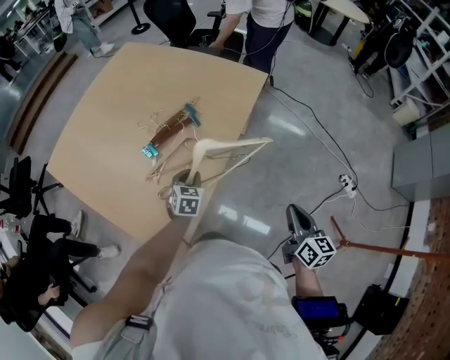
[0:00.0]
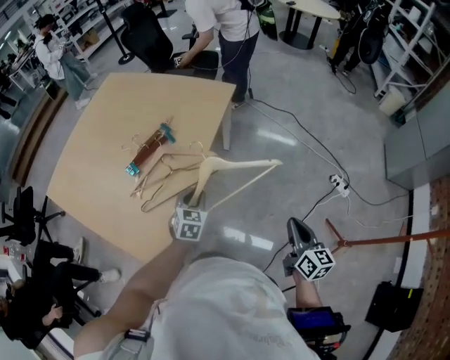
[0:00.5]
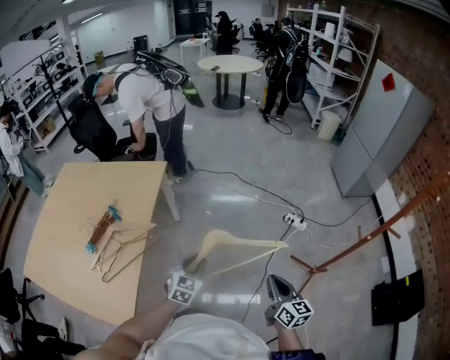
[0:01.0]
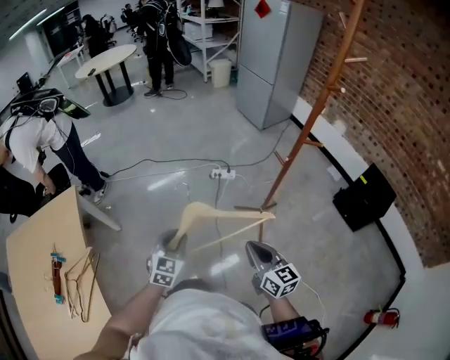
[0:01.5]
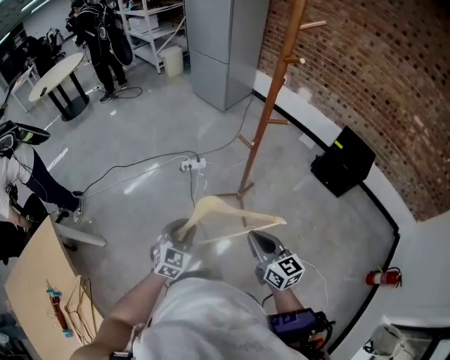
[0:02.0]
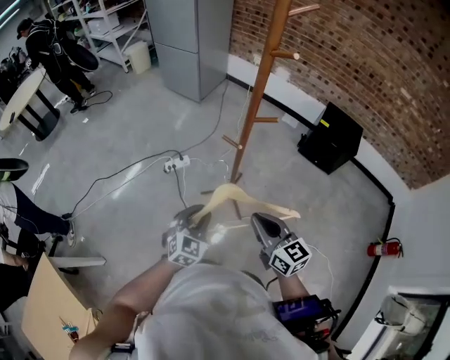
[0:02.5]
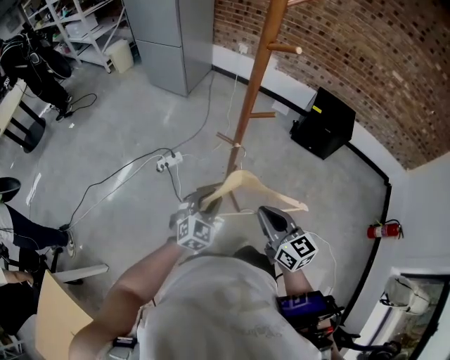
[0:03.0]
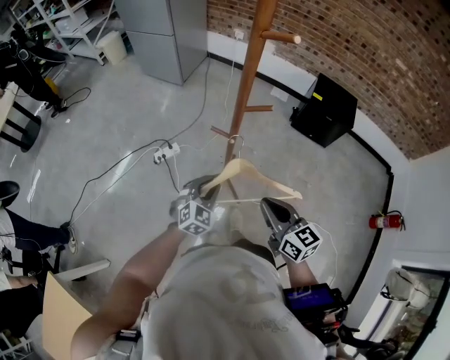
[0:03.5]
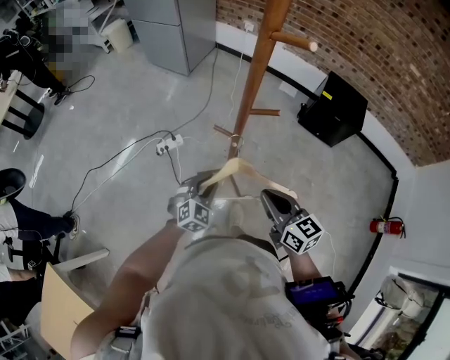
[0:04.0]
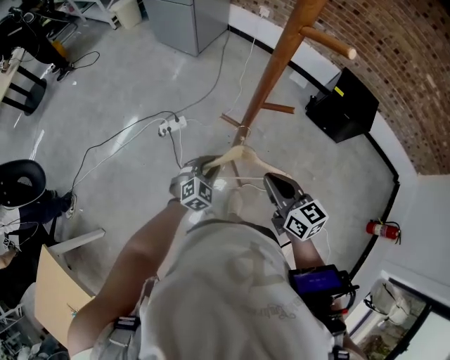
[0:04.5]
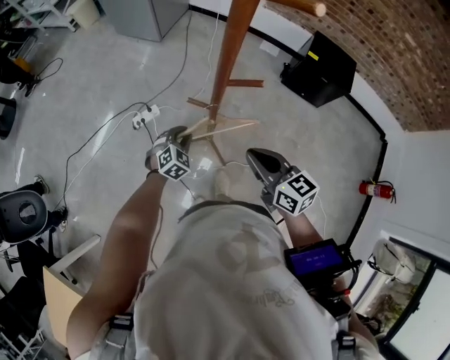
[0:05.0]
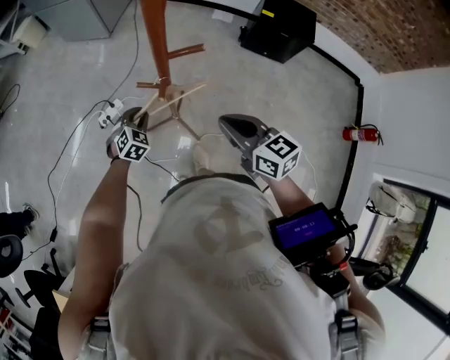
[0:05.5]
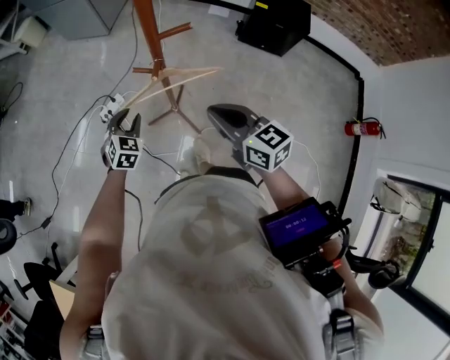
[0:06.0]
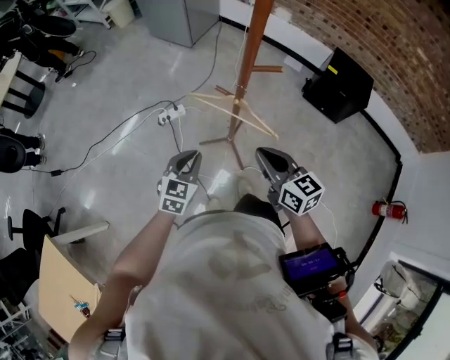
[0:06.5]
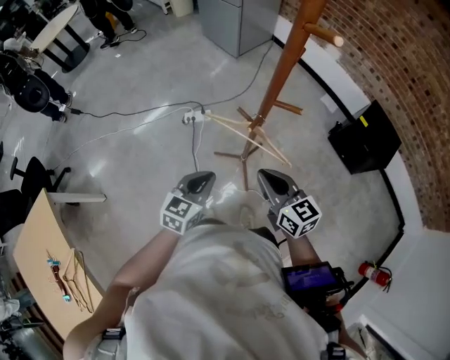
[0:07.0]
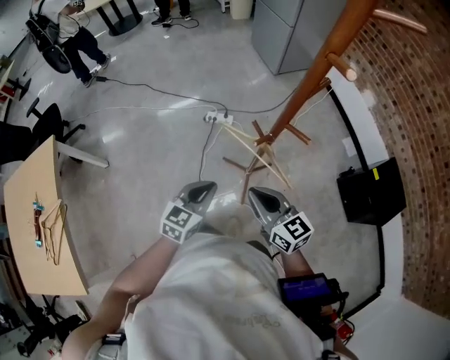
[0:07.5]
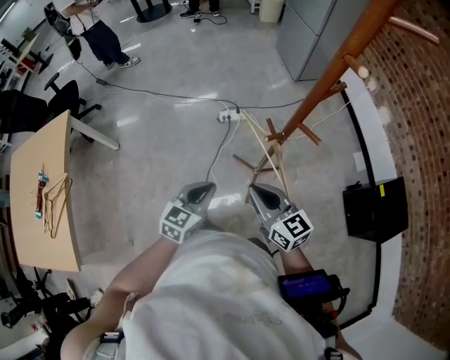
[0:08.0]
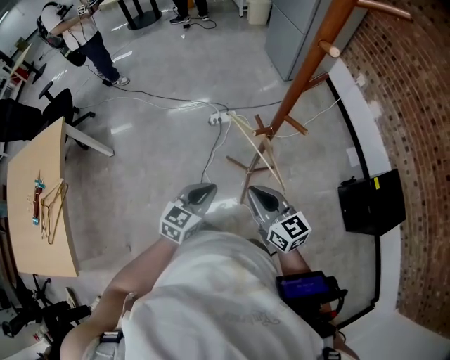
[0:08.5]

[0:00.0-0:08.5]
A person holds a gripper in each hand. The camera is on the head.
0:00.0 to 0:02.0: Both grippers are carried approximately 60 cm. The left gripper rotates about 90 degrees, while the right gripper rotates some 50 degrees.
0:02.0 to 0:04.0: The right gripper is displaced forward by approximately 20 cm, while the left gripper is displaced forward and to the right by approximately 30 cm, and changes its angle by roughly 30 degrees.
0:04.0 to 0:06.5: The left gripper travels to the left by some 5 cm, reaches some 15 cm forward, then returns, and changes its angle by approximately 30 degrees.
0:06.5 to 0:08.5: The left gripper ends up approximately 15 cm from where it was, and swivels about 30 degrees. The right gripper turns by some 40 degrees.

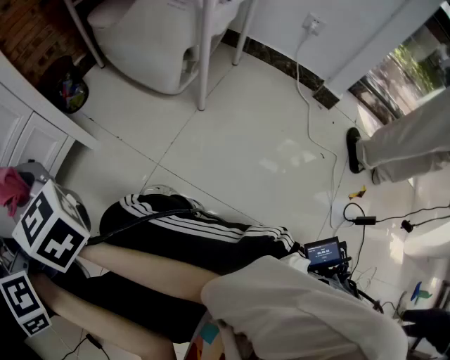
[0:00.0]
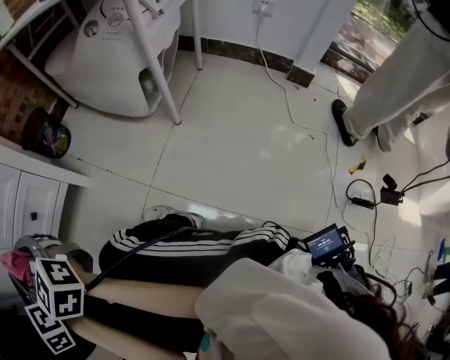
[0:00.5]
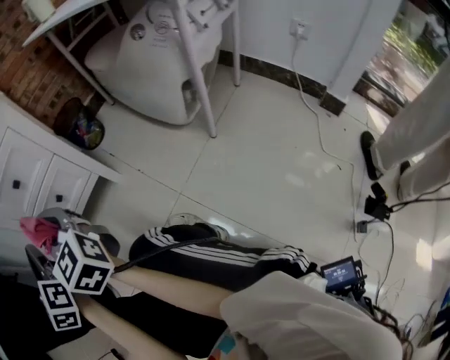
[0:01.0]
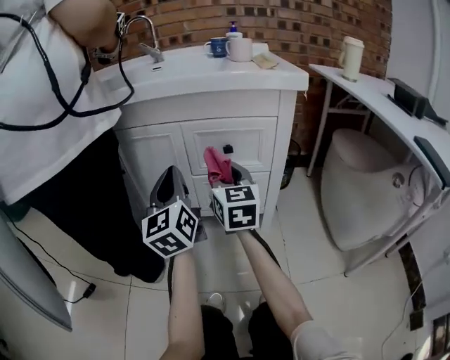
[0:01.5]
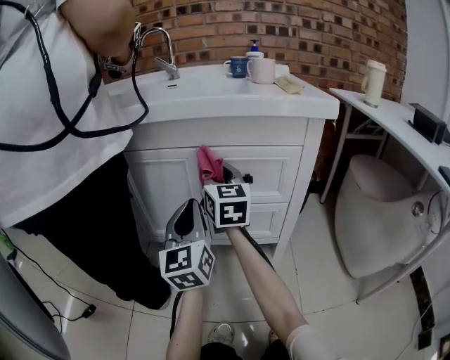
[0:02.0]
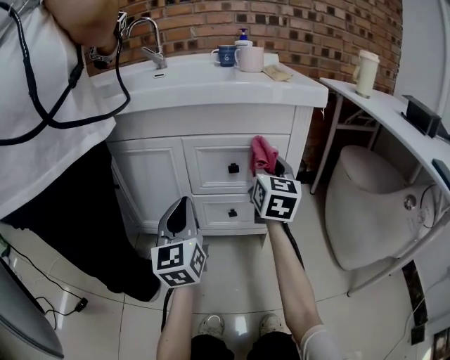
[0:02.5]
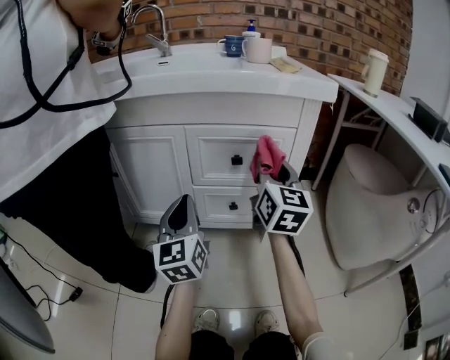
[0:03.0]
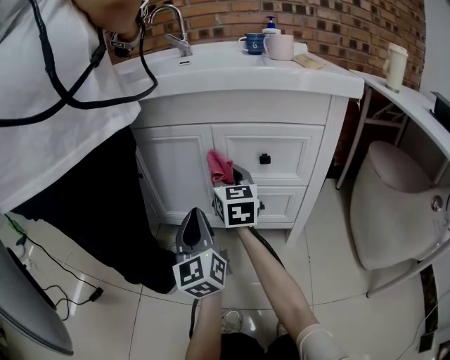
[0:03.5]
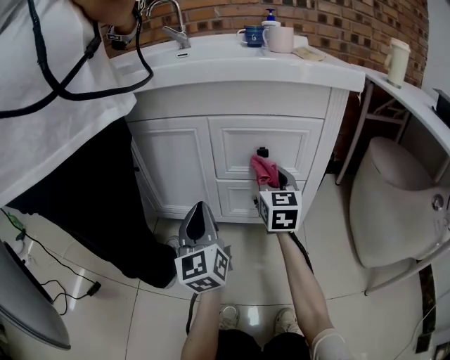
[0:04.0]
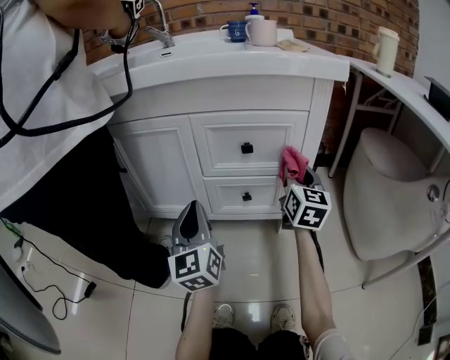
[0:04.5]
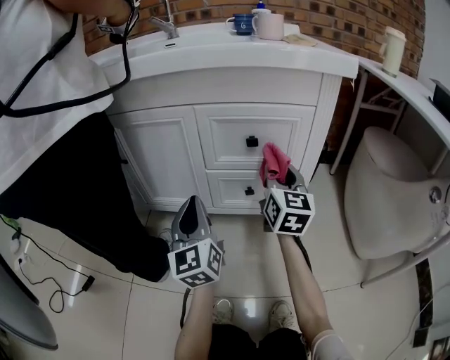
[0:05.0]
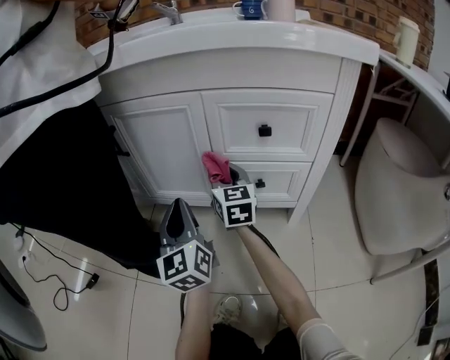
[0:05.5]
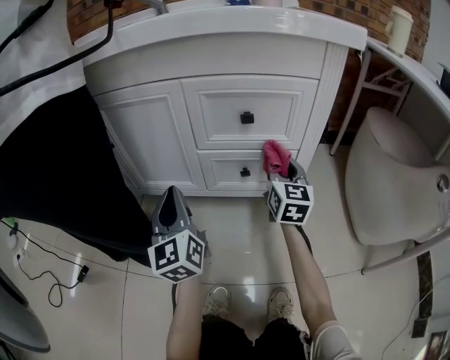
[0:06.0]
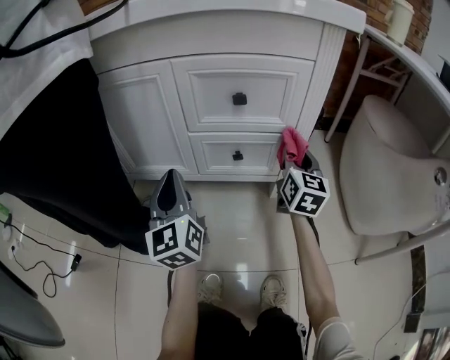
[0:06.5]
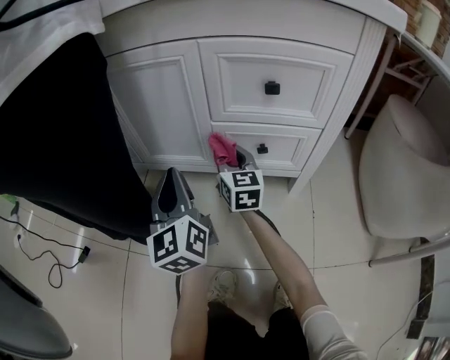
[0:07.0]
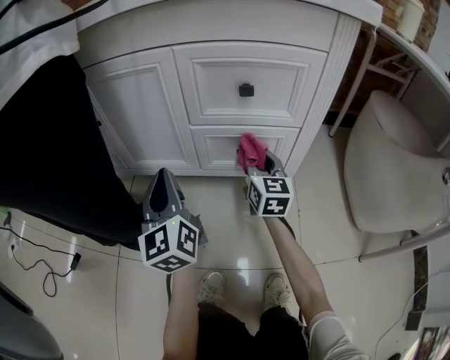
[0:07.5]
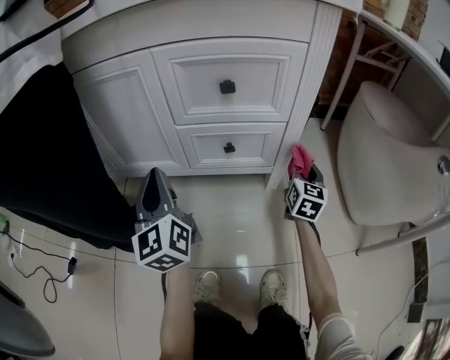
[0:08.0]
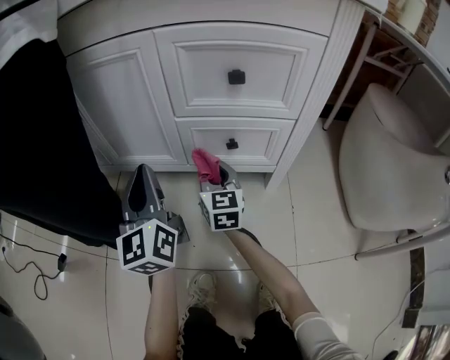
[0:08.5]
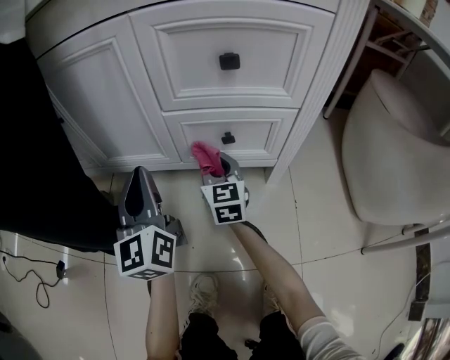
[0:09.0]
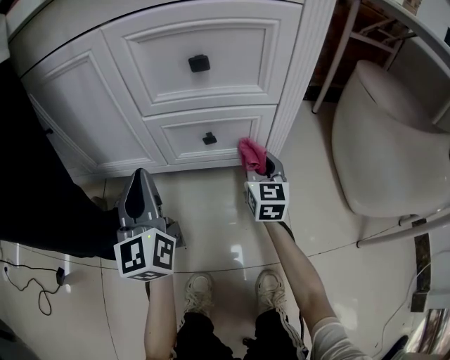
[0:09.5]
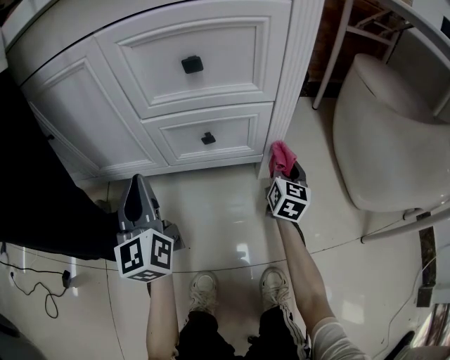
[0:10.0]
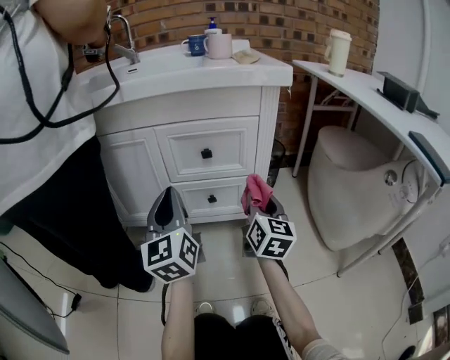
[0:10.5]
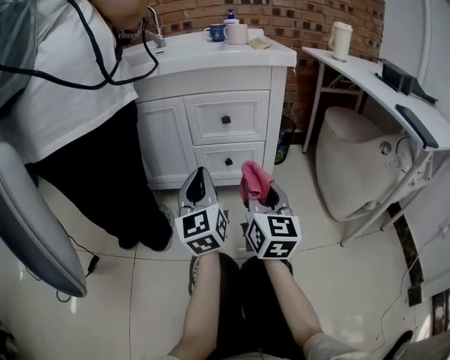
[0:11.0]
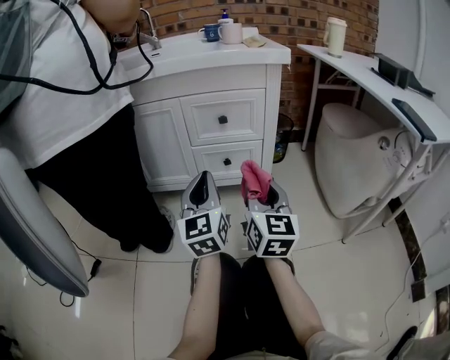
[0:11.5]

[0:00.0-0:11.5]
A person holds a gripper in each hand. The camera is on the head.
0:00.0 to 0:02.0: The left gripper shifts about 15 cm forward and to the left, while the right gripper heads forward and to the left, covering some 30 cm, and turns by roughly 30 degrees.
0:02.0 to 0:04.0: The left gripper moves downward, some 10 cm; the right gripper goes left and right, roughly 20 cm each way, reversing 2 times.
0:04.0 to 0:06.0: The right gripper swings left and right, some 25 cm each way, with 2 reversals.
0:06.0 to 0:07.5: The right gripper goes left and right, approximately 25 cm each way, reversing 2 times.
0:07.5 to 0:09.5: The right gripper goes left and right, some 30 cm each way, reversing 2 times. Meanwhile the left gripper changes place by roughly 5 cm.
0:09.5 to 0:11.5: The right gripper heads upward and backward, covering approximately 40 cm. Meanwhile the left gripper is displaced backward, upward and to the right by approximately 25 cm.

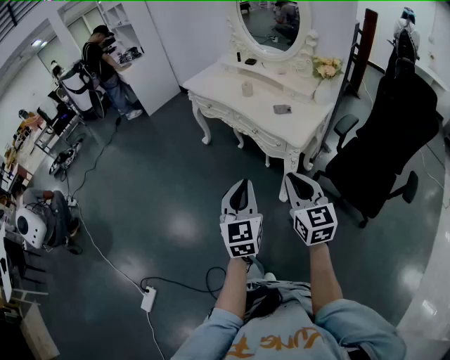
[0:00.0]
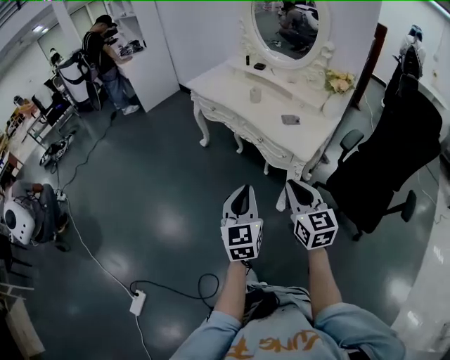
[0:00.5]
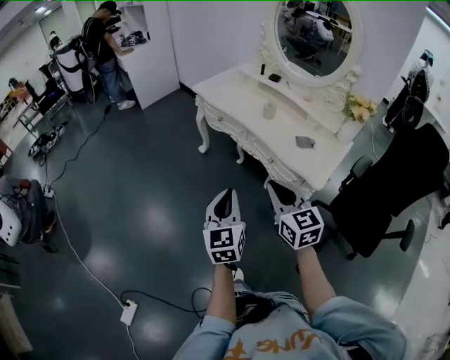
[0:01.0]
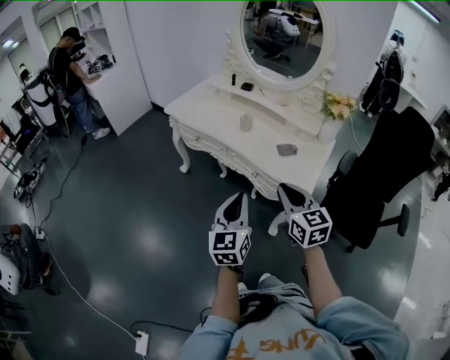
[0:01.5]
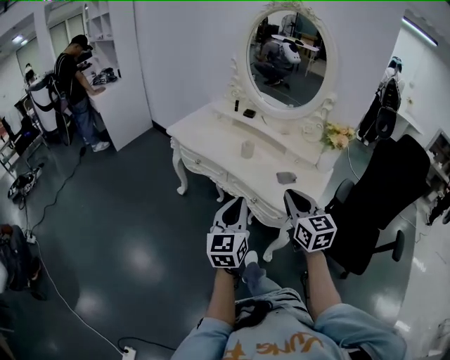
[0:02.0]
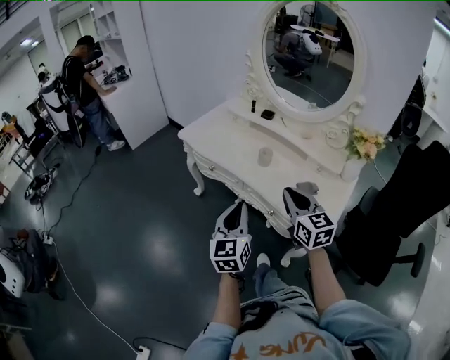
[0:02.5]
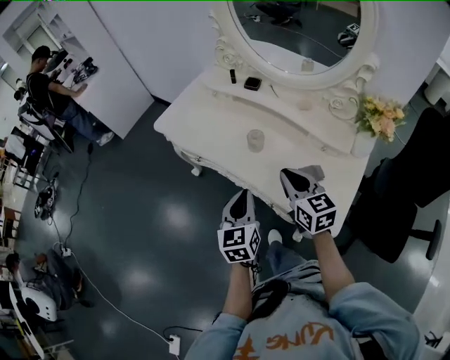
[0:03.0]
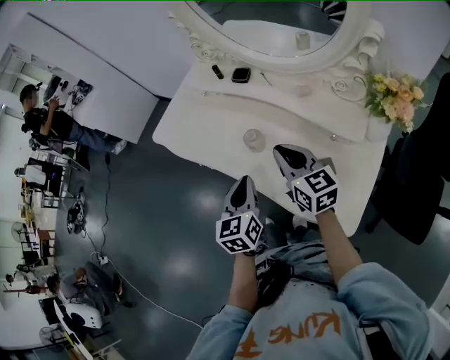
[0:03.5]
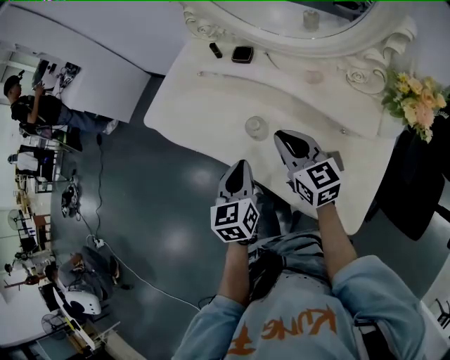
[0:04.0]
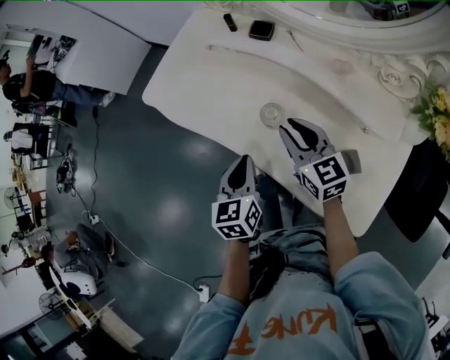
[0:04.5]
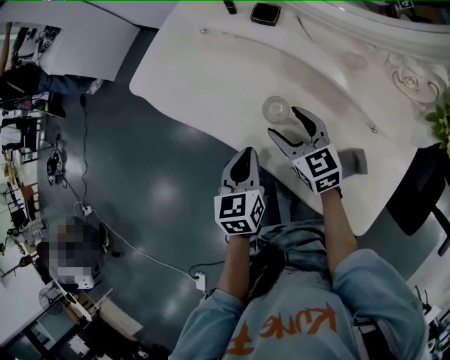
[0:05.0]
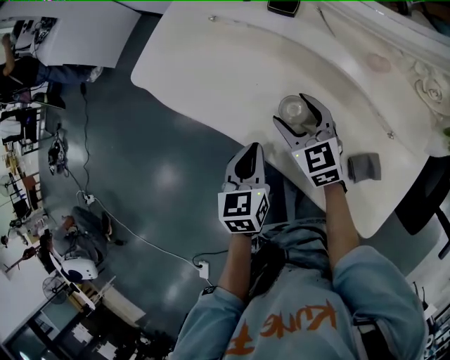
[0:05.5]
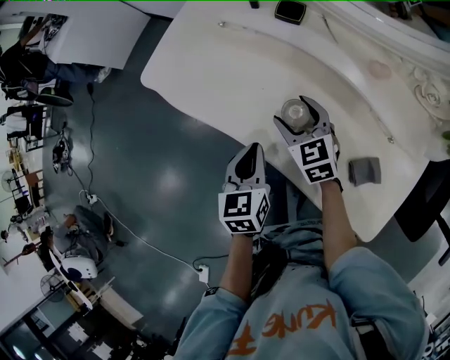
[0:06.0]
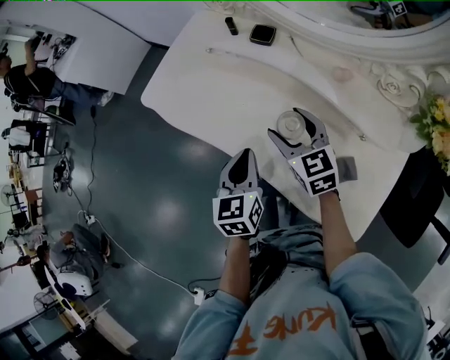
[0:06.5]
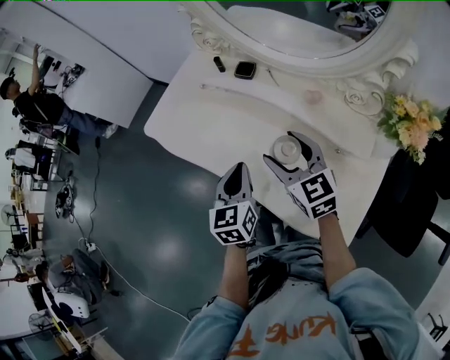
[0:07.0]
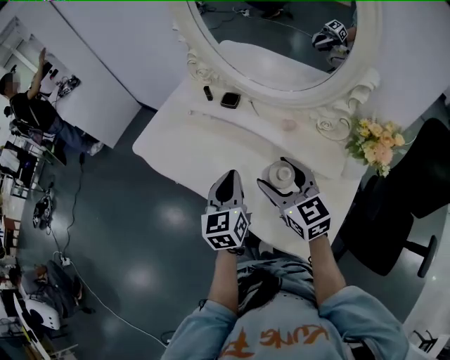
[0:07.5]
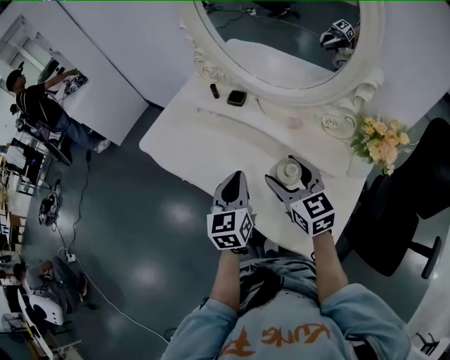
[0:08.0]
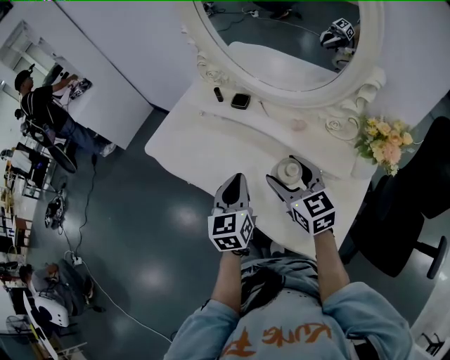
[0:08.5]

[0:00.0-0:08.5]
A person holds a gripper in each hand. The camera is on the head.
0:00.0 to 0:02.0: Both grippers travel together forward, some 30 cm. The left gripper swivels roughly 20 degrees.
0:02.0 to 0:04.0: Both grippers are carried forward, approximately 60 cm. The left gripper turns by some 30 degrees.
0:04.0 to 0:06.5: The right gripper goes roughly 10 cm forward and downward, and opens.
0:06.5 to 0:08.5: The left gripper goes approximately 10 cm upward and to the right. The right gripper is displaced upward, backward and to the right by about 20 cm.
